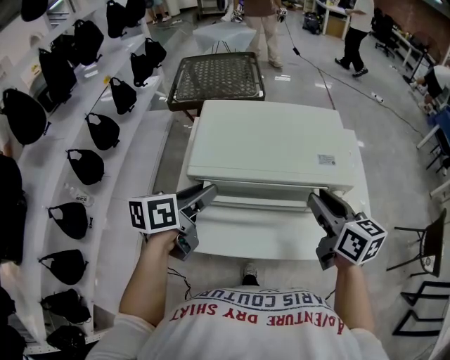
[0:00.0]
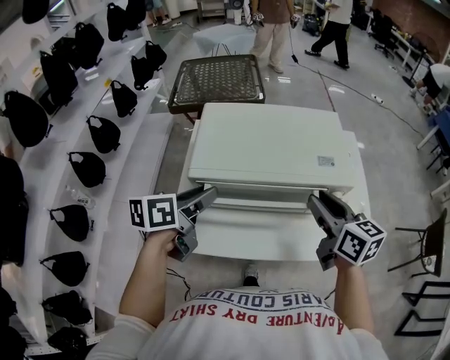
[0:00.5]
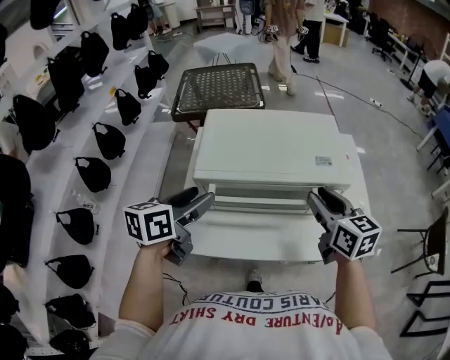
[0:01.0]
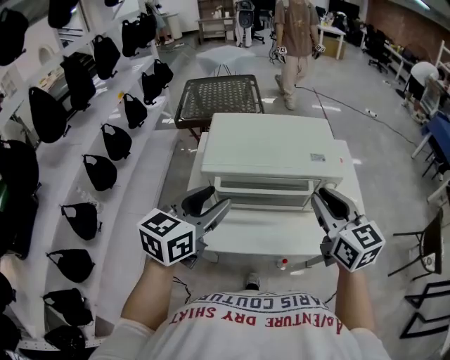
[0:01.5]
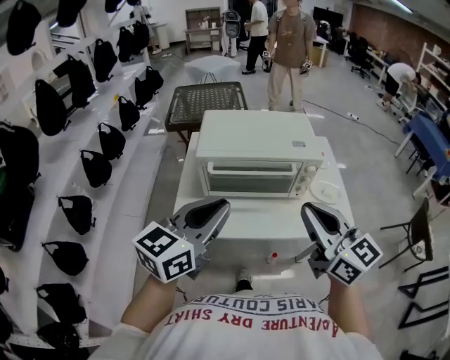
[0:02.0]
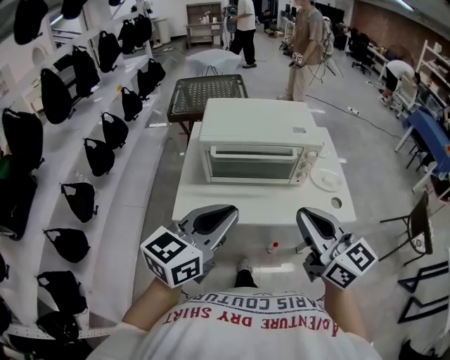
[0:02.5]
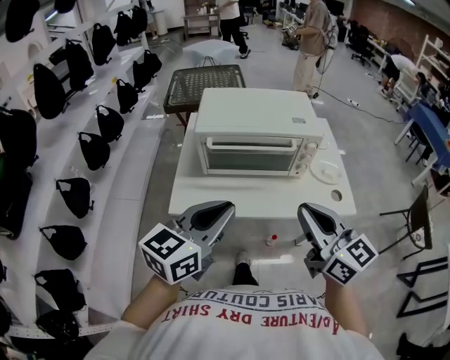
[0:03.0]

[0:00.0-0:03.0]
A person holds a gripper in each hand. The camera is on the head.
0.0 to 1.5 s: Both grippers travel together upward and backward, roughly 10 cm. The left gripper rotates roughly 30 degrees, while the right gripper swivels some 20 degrees.
1.5 to 3.0 s: Both grippers move backward, about 15 cm. The left gripper closes.

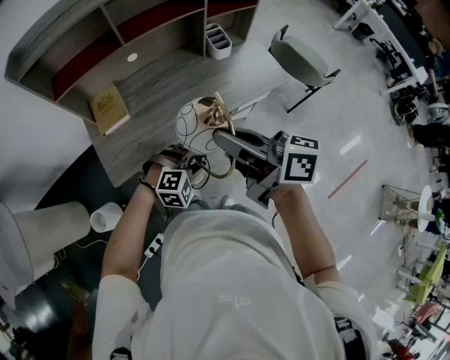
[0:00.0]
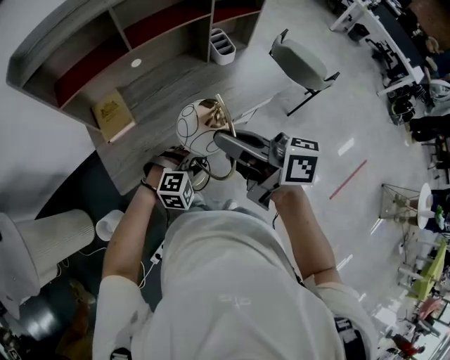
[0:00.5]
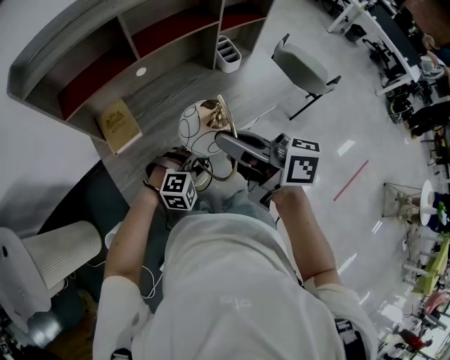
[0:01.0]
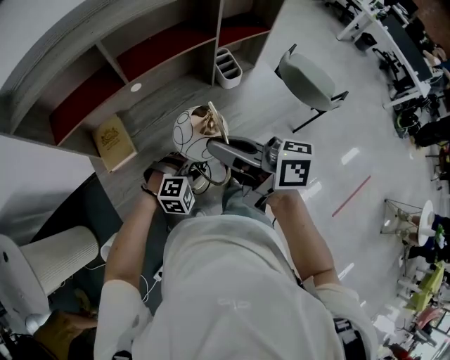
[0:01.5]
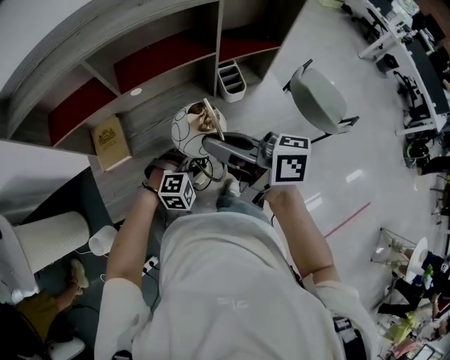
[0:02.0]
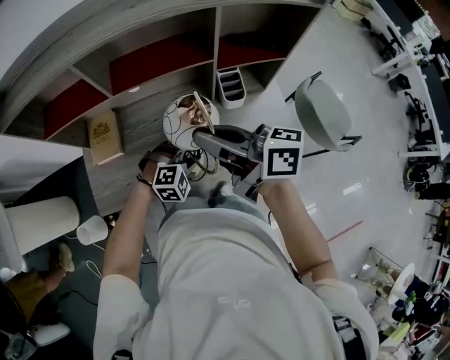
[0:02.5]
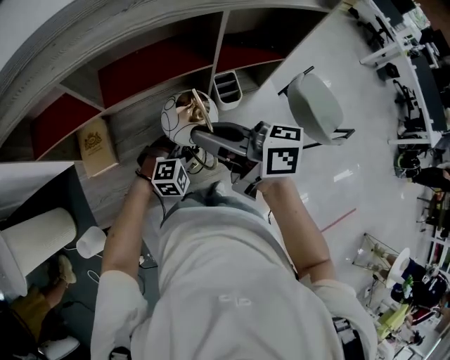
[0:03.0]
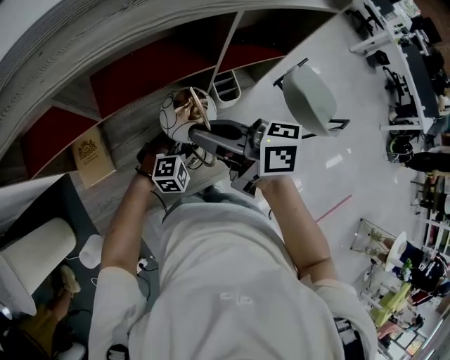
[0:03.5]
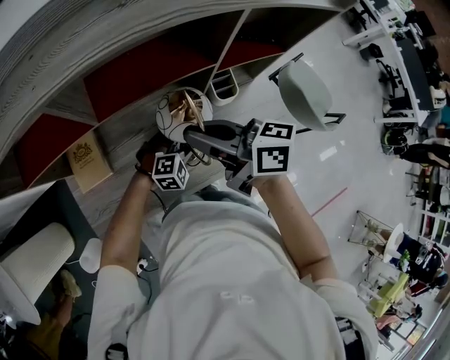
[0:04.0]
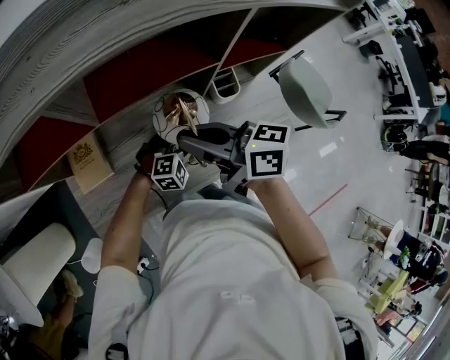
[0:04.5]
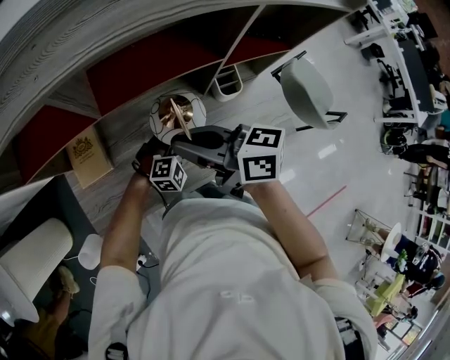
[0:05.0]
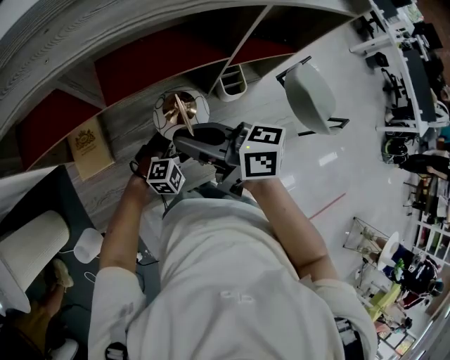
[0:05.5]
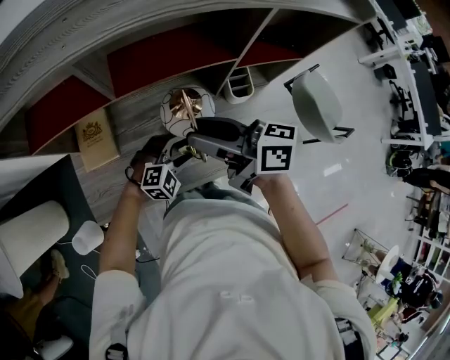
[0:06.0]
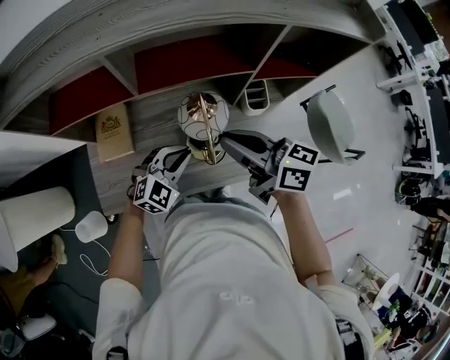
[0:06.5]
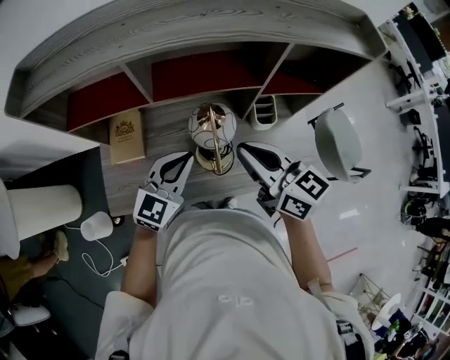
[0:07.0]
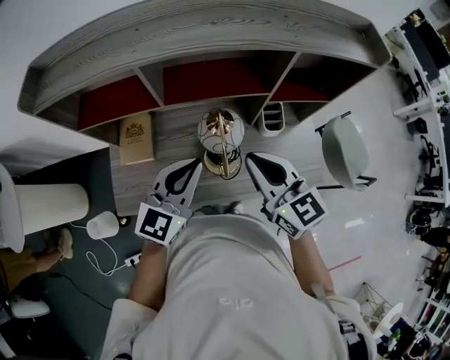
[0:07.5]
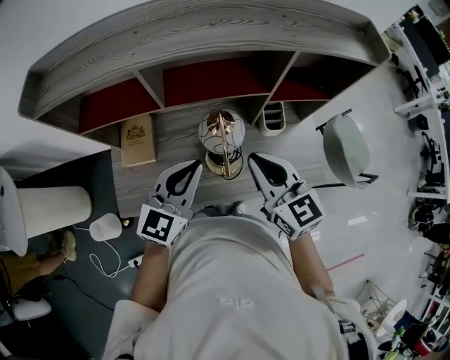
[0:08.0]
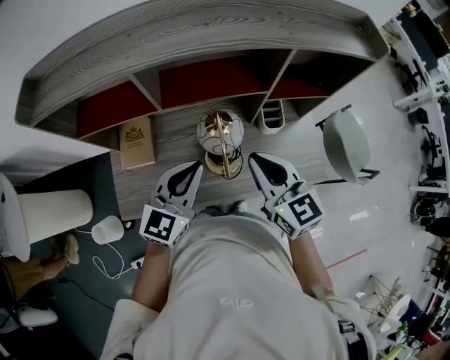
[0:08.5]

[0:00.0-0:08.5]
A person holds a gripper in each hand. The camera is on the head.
0.0 to 2.0 s: The grippers both shift forward by about 25 cm.
2.0 to 4.0 s: Both grippers move forward and downward, approximately 15 cm.
4.0 to 6.5 s: The right gripper opens and closes again. Meanwhile the left gripper heads upward and to the left, covering approximately 15 cm, swivels roughly 30 degrees, and opens, then closes again.
6.5 to 8.5 s: The right gripper swivels about 40 degrees, while the left gripper heads upward, covering some 15 cm, and turns by roughly 40 degrees.

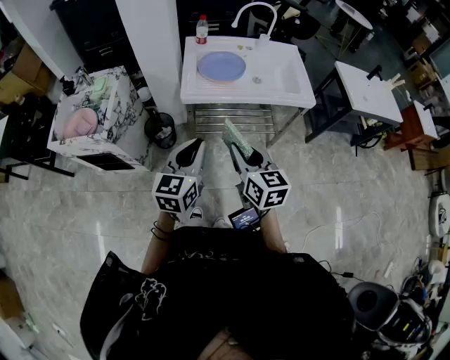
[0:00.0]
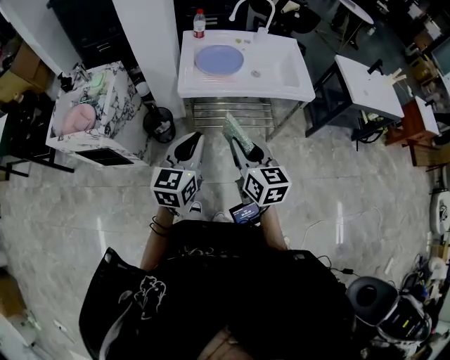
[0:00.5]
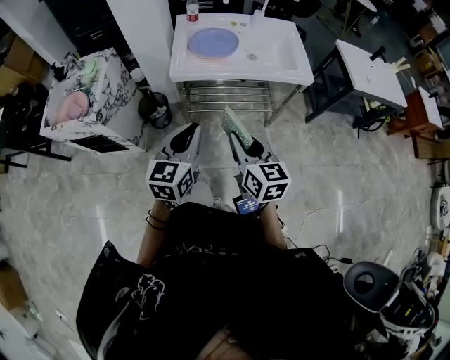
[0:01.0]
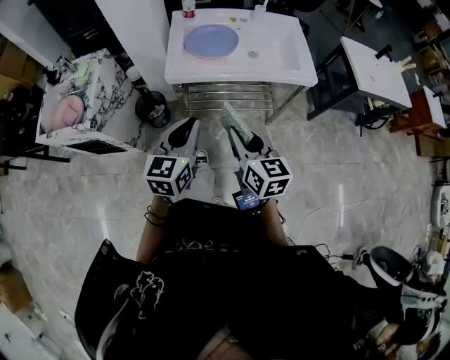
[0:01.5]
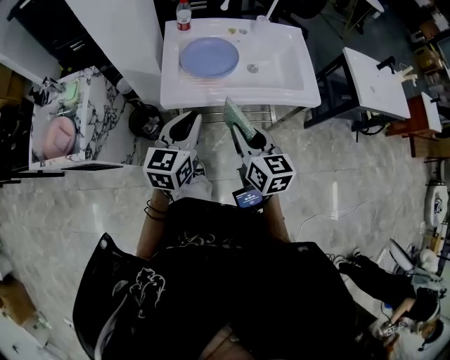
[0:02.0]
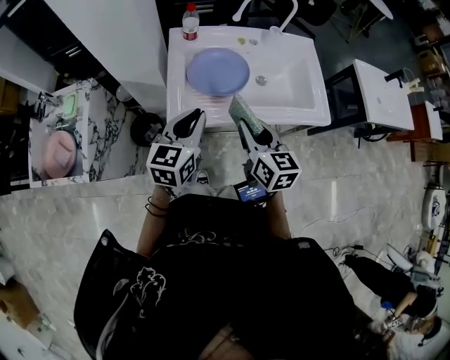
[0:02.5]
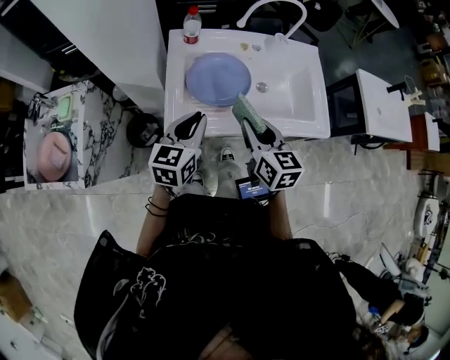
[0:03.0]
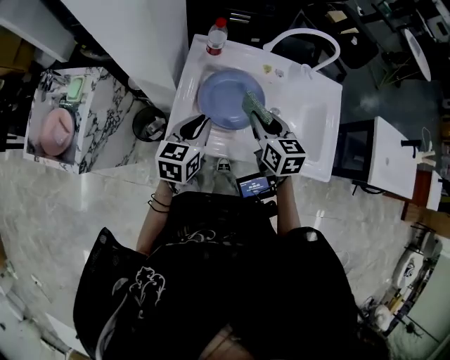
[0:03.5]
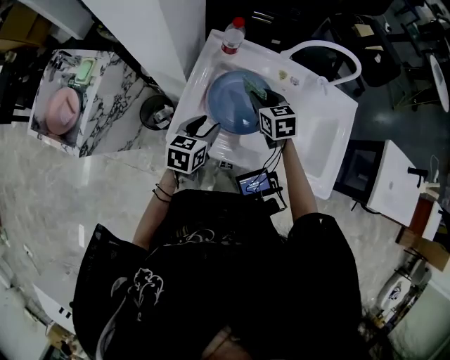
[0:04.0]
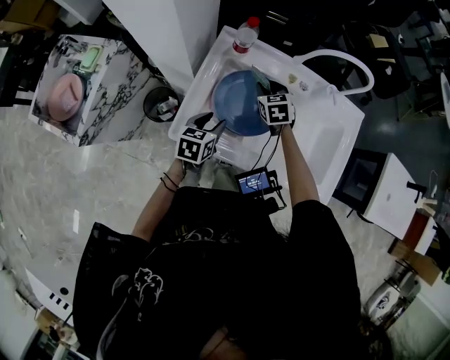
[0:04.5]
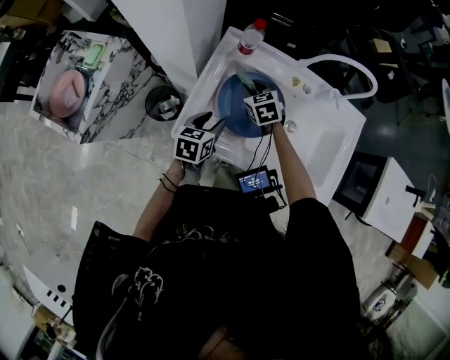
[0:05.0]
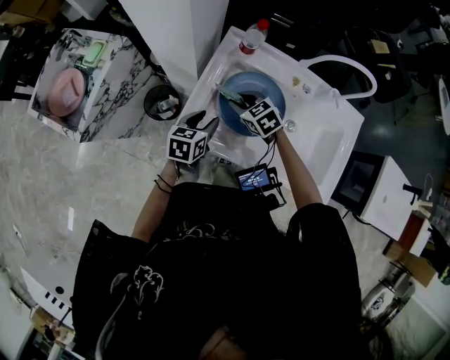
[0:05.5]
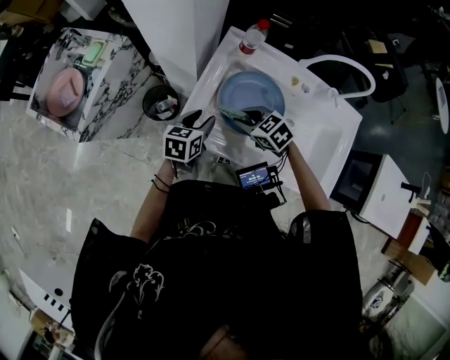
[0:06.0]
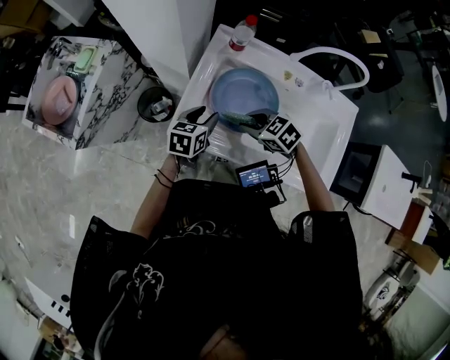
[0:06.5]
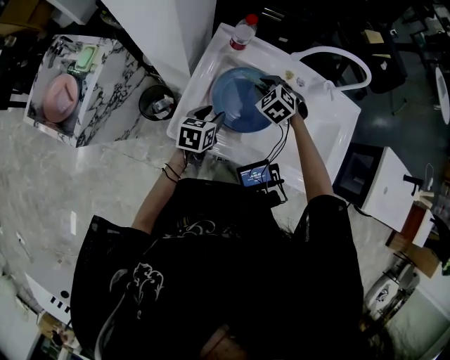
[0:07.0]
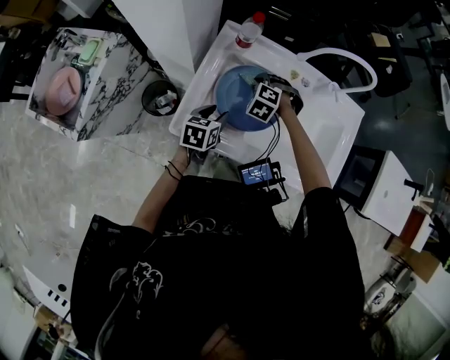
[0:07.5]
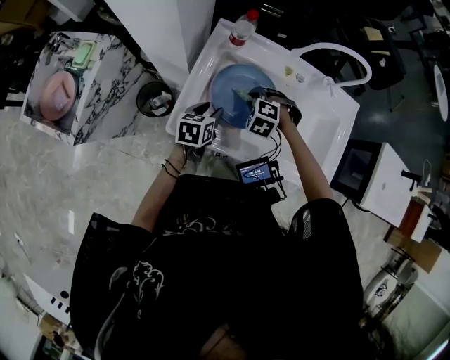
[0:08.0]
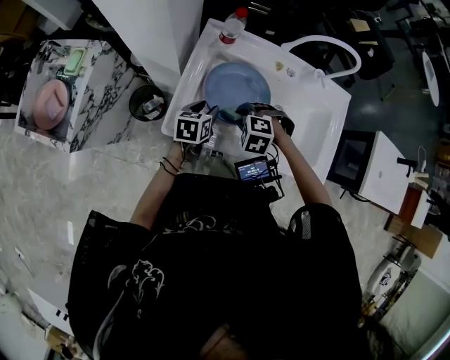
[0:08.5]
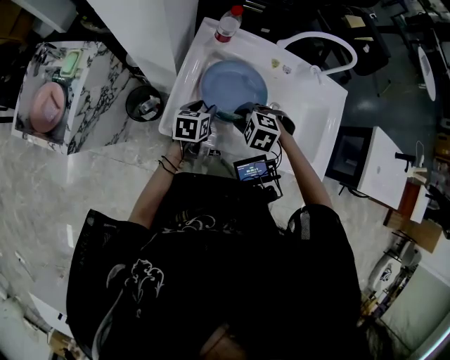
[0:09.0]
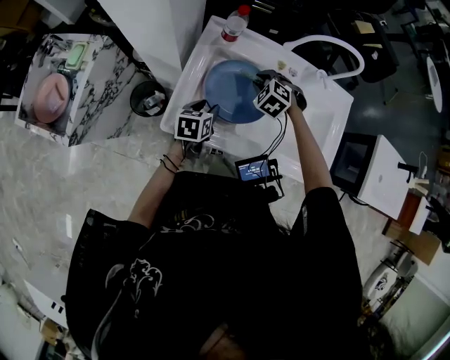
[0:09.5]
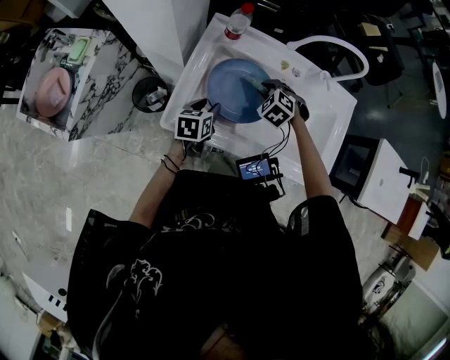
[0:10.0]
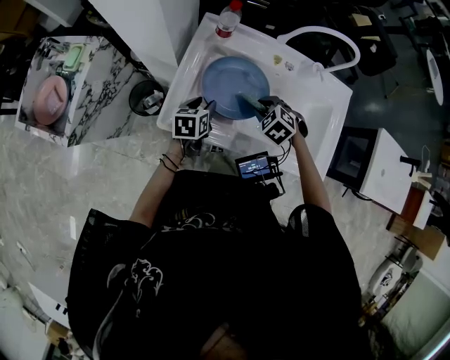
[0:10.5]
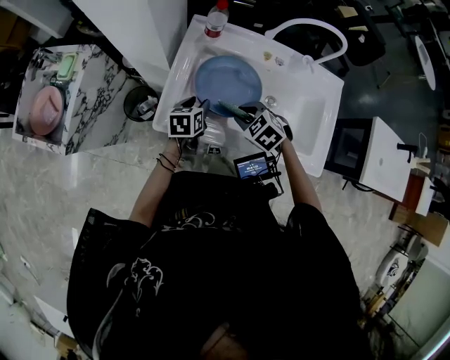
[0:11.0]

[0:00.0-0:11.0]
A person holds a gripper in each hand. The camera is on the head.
0.0 to 2.0 s: The two grippers go approximately 20 cm forward.
2.0 to 3.5 s: The two grippers go approximately 25 cm forward.
3.5 to 5.5 s: The right gripper shifts about 20 cm downward, to the left and forward, and rotates some 50 degrees; the left gripper heads downward, covering some 10 cm, and opens its fingers.
5.5 to 7.5 s: The right gripper changes place by roughly 10 cm, and turns by approximately 50 degrees. The left gripper moves about 5 cm.
7.5 to 9.0 s: The right gripper travels backward by some 15 cm.
9.0 to 11.0 s: The right gripper reaches approximately 15 cm forward, then returns, and turns by about 20 degrees.

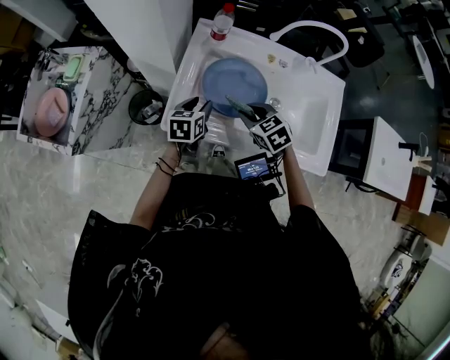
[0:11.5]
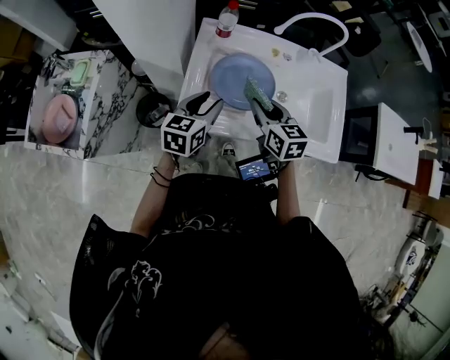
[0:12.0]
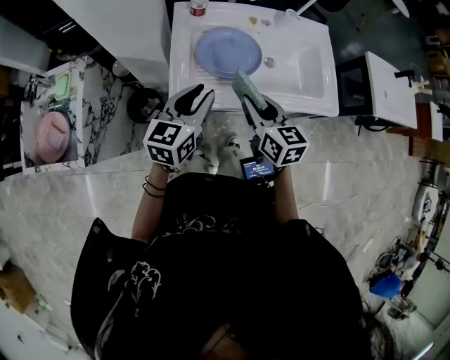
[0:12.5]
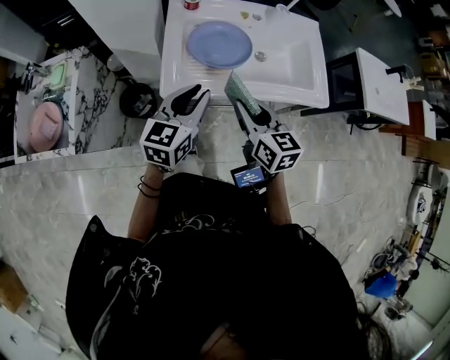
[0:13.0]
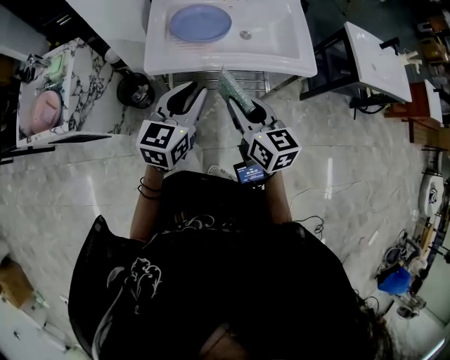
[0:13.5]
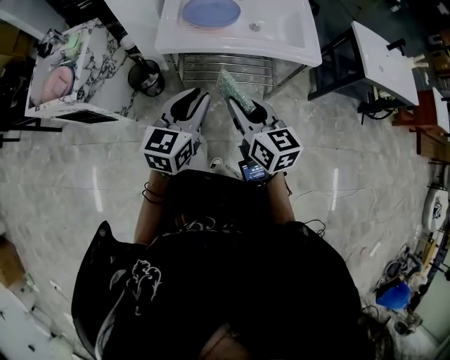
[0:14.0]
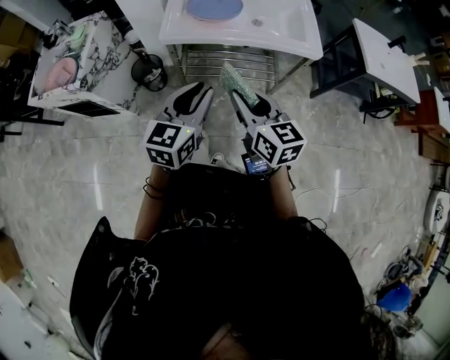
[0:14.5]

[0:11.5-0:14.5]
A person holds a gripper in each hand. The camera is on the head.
11.5 to 13.0 s: The right gripper is displaced backward and upward by approximately 20 cm, and rotates approximately 50 degrees, while the left gripper shifts about 25 cm upward and backward, and rotates some 30 degrees.
13.0 to 14.5 s: Both grippers travel together backward, some 25 cm.

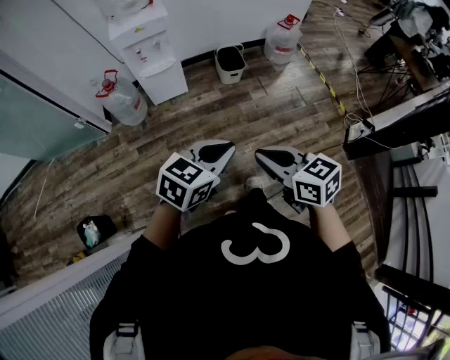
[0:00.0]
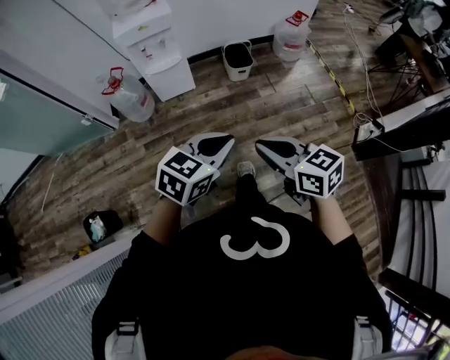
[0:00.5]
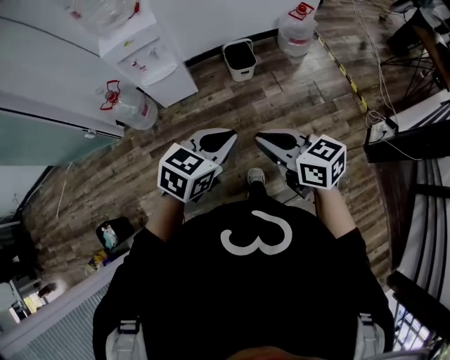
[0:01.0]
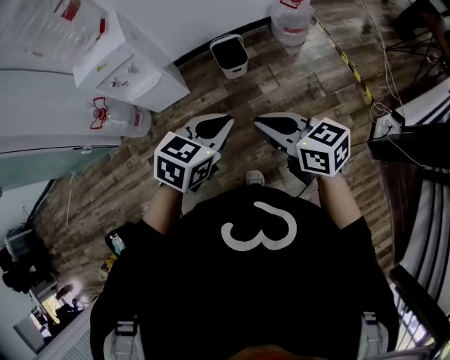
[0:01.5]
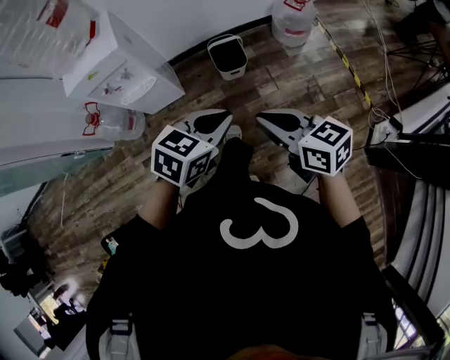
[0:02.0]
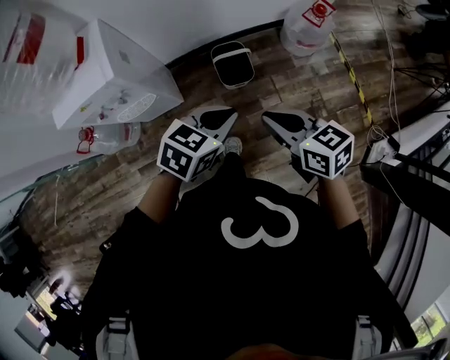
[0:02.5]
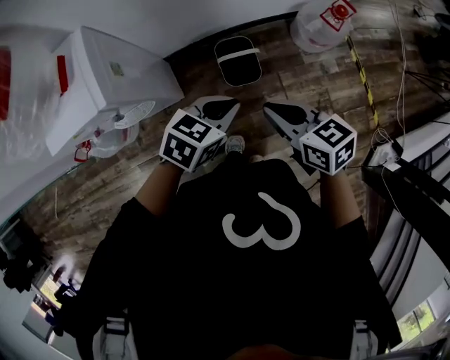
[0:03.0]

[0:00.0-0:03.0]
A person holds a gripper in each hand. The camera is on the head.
0.0 to 1.5 s: The two grippers go roughly 35 cm forward and to the right.
1.5 to 3.0 s: The two grippers travel together, forward, some 40 cm.
